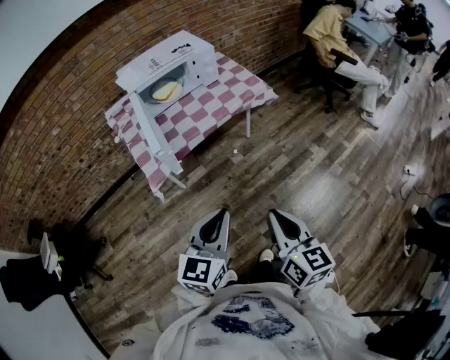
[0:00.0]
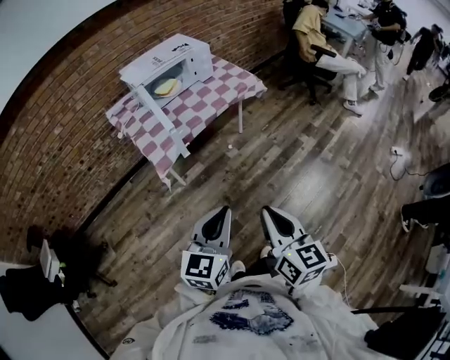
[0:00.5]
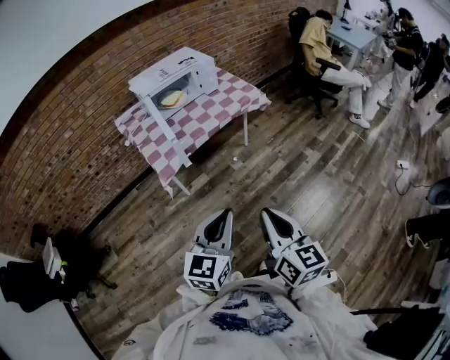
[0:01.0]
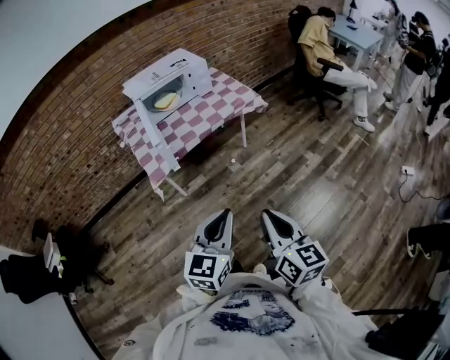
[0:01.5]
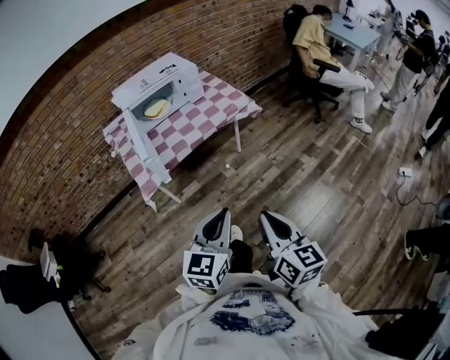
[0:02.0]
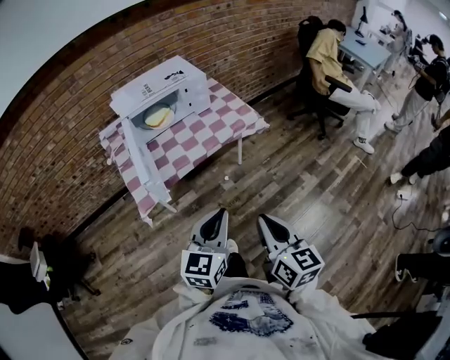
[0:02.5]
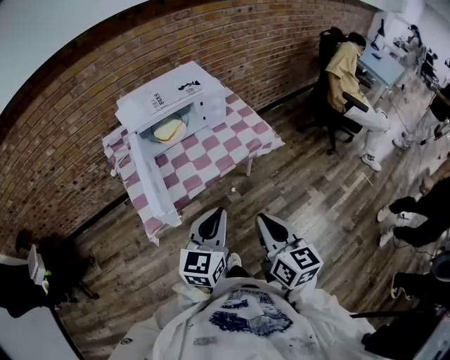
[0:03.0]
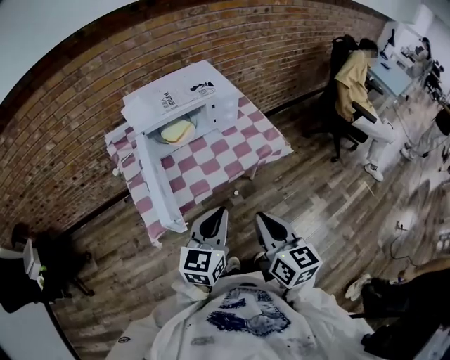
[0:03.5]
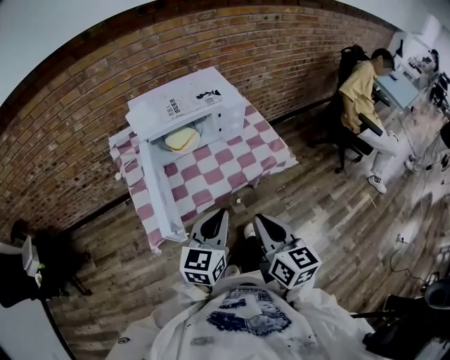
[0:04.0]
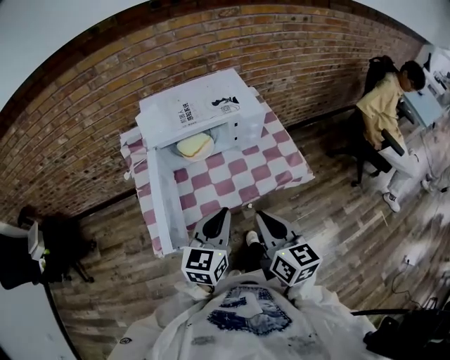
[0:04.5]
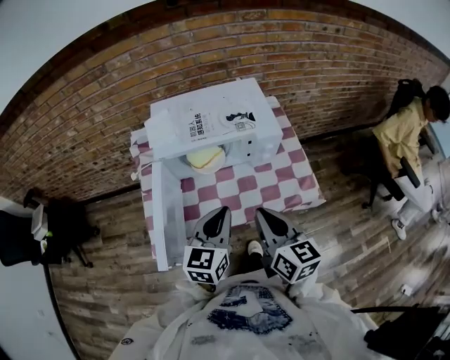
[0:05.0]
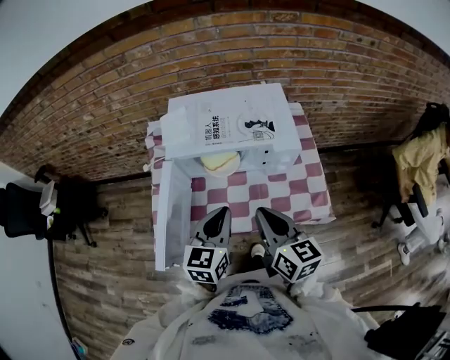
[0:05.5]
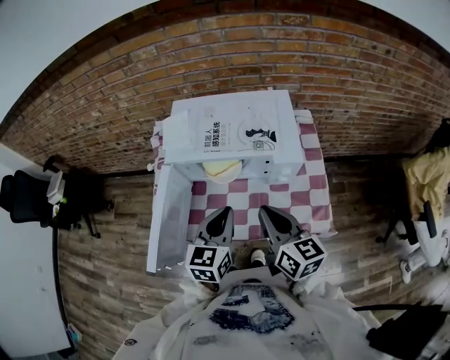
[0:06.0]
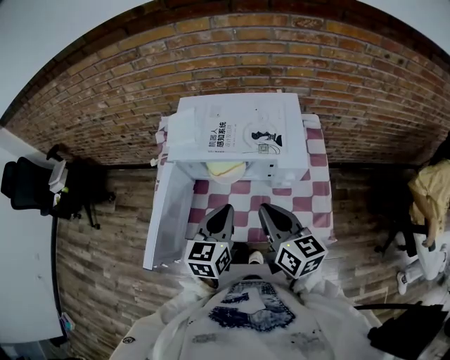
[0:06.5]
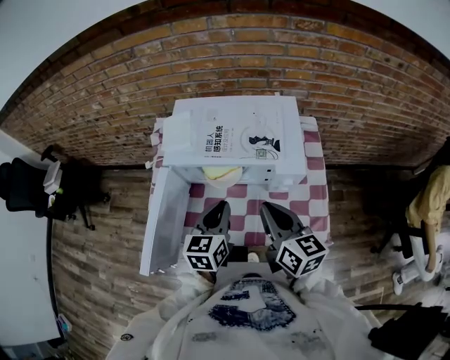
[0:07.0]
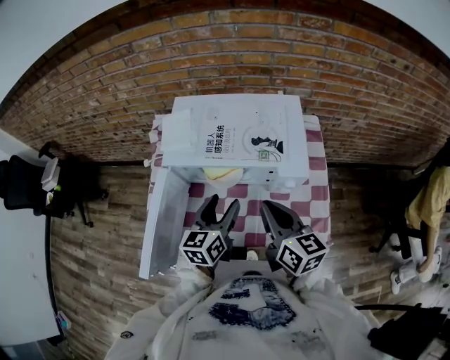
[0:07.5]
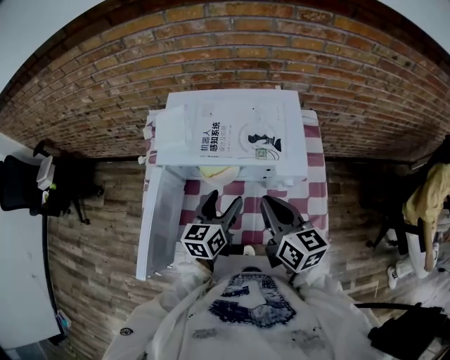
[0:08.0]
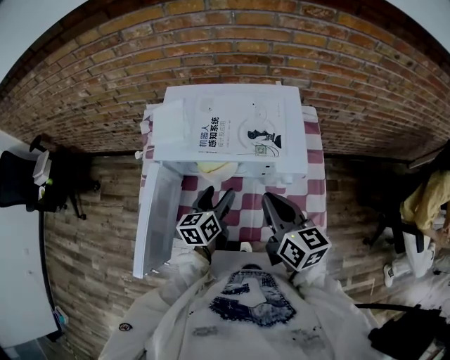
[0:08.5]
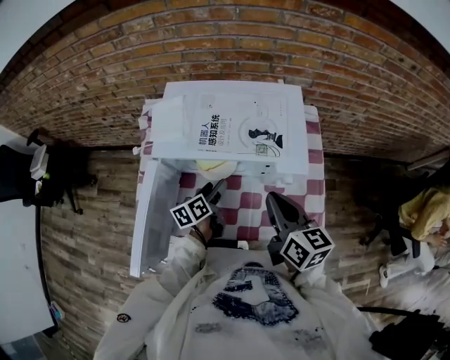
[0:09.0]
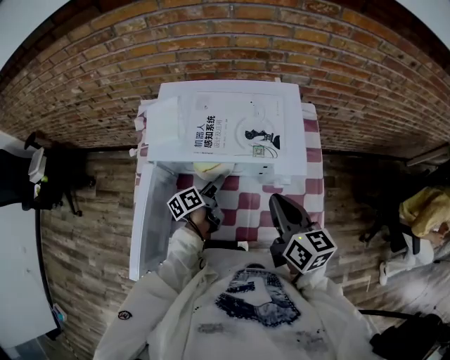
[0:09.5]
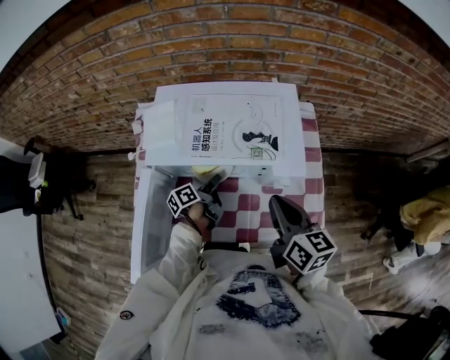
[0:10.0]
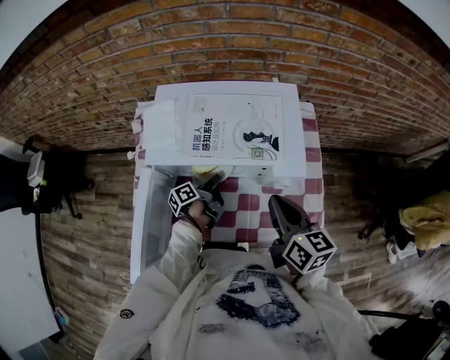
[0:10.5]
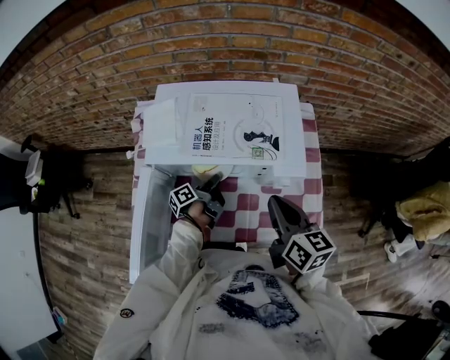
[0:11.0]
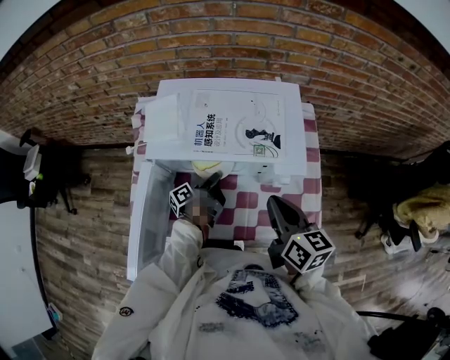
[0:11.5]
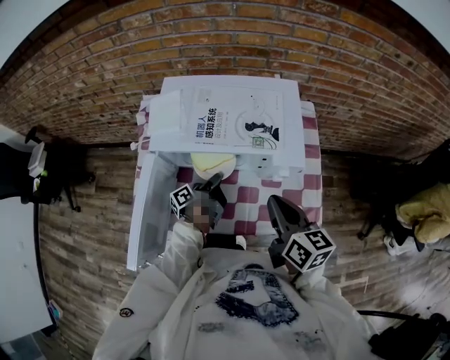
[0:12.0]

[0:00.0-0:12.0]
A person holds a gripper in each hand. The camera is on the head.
0:00.0 to 0:02.0: The two grippers go roughly 5 cm to the right. The right gripper goes backward and returns, about 15 cm each way.
0:02.0 to 0:04.0: The grippers both shift forward by about 35 cm.
0:04.0 to 0:06.0: The right gripper changes place by some 30 cm, and swivels roughly 30 degrees. The left gripper changes place by roughly 25 cm, and turns by roughly 30 degrees.
0:06.0 to 0:08.0: The left gripper shifts roughly 10 cm forward and downward, and opens up, while the right gripper moves forward, about 5 cm.
0:08.0 to 0:10.0: The left gripper is displaced downward and forward by some 15 cm, twists some 50 degrees counterclockwise, seen from behind, and closes up.
0:10.0 to 0:12.0: The left gripper closes.

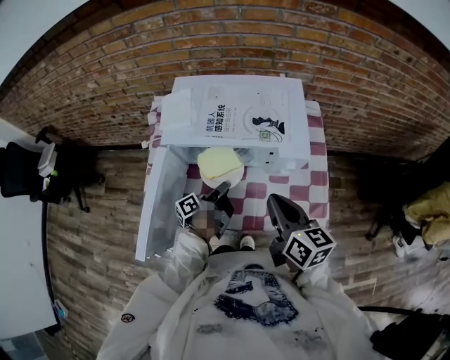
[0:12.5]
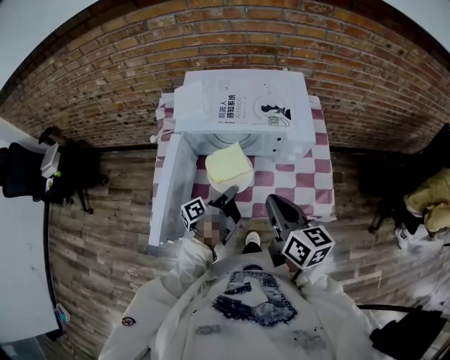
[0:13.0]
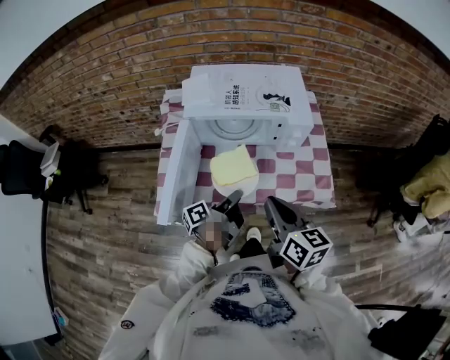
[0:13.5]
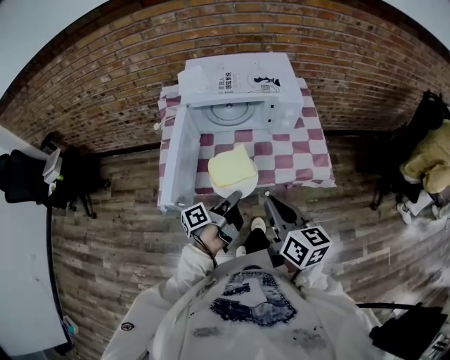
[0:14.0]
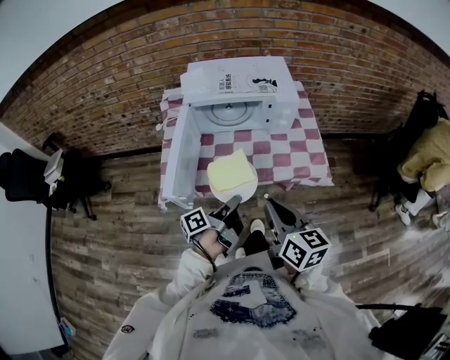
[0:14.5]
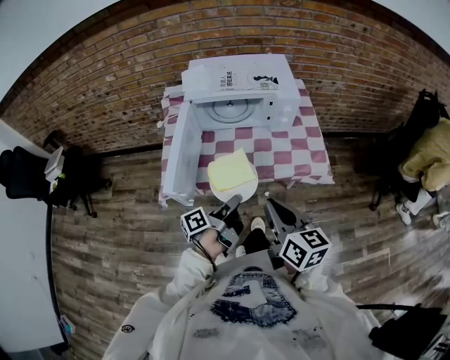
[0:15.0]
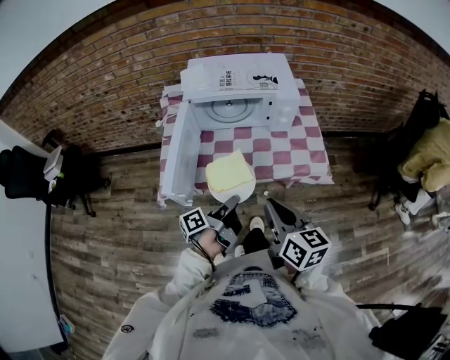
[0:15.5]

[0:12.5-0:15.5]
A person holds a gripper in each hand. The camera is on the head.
0:12.5 to 0:14.0: The two grippers go roughly 25 cm backward.
0:14.0 to 0:15.5: The grippers make only small movements.

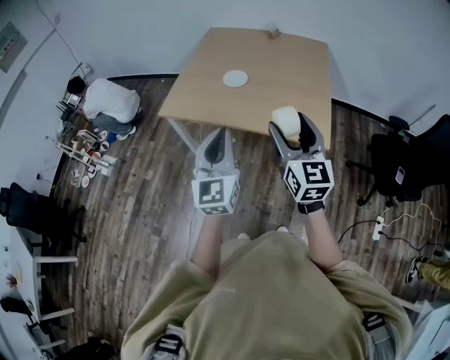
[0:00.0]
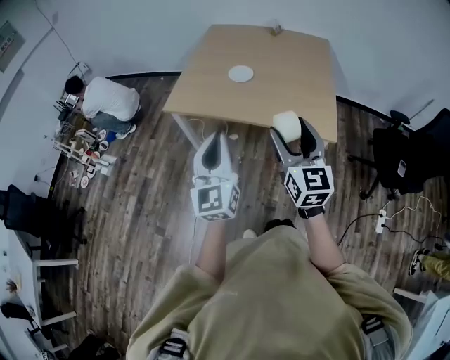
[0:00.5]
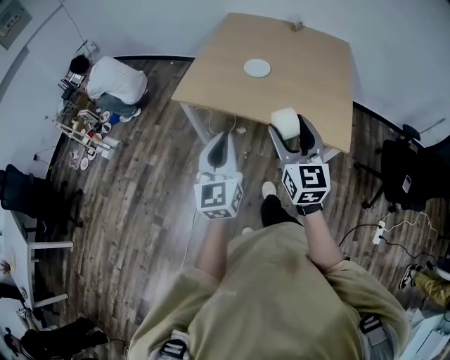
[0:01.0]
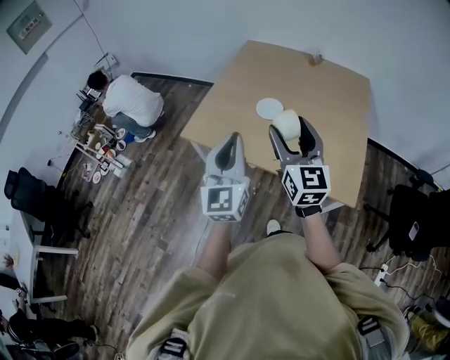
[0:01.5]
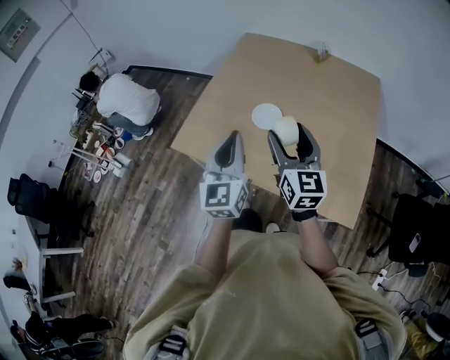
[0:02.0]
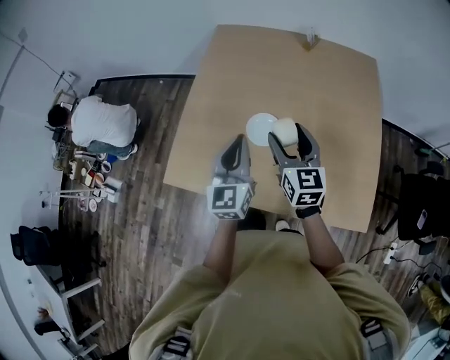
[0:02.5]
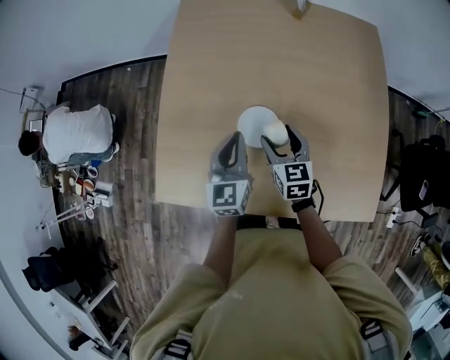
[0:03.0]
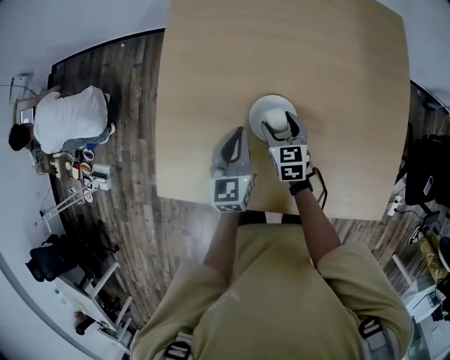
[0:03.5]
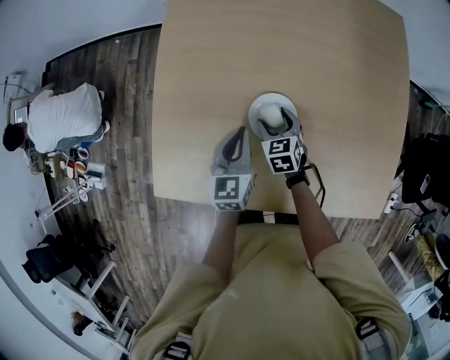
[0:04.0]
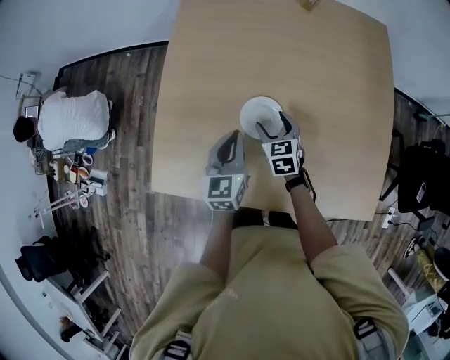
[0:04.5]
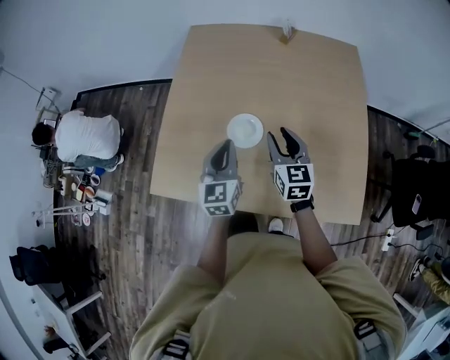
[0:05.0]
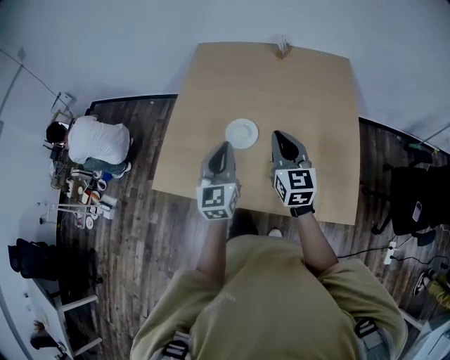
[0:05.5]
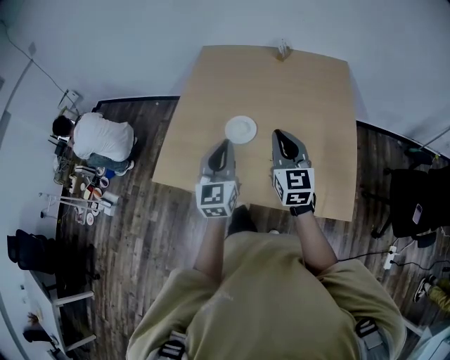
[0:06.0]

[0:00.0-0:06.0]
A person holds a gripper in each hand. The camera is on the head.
0:00.0 to 0:02.0: Both grippers move forward, some 35 cm.
0:02.0 to 0:04.0: The right gripper moves downward and forward, some 50 cm, and points its fingers about 50 degrees further downward; the left gripper goes some 40 cm forward and downward, and rotates approximately 40 degrees.
0:04.0 to 0:06.0: The grippers both shift upward, backward and to the right by some 40 cm. The left gripper changes its angle by about 30 degrees, while the right gripper tilts its fingers roughly 40 degrees upward, and closes its fingers.

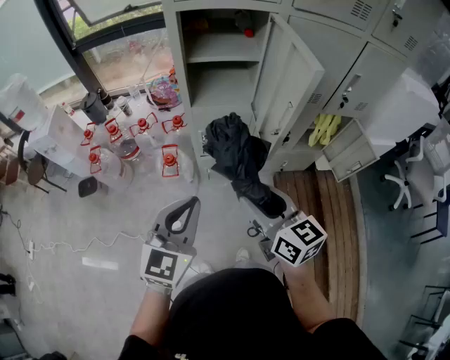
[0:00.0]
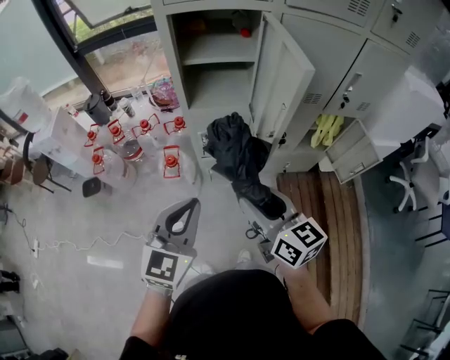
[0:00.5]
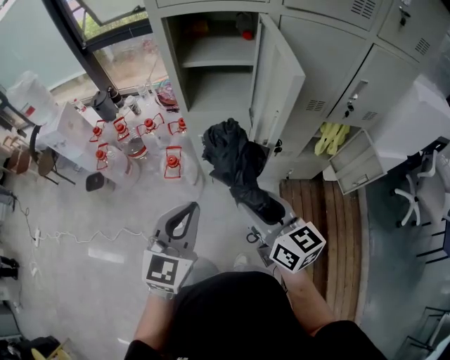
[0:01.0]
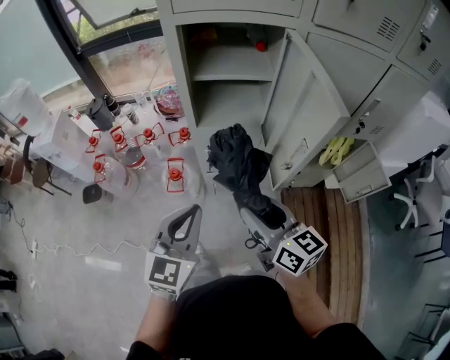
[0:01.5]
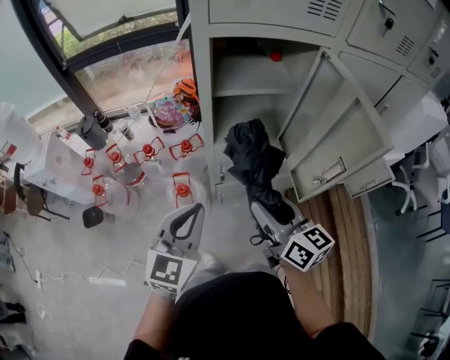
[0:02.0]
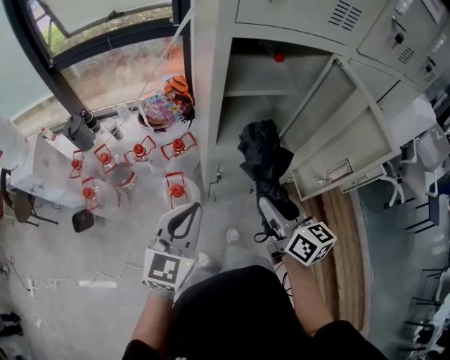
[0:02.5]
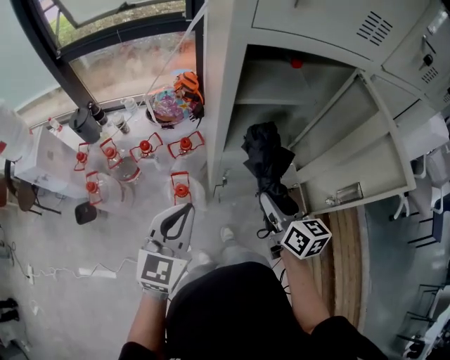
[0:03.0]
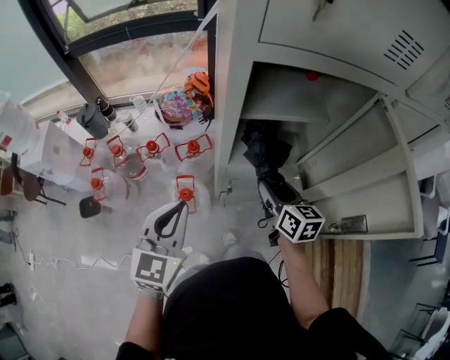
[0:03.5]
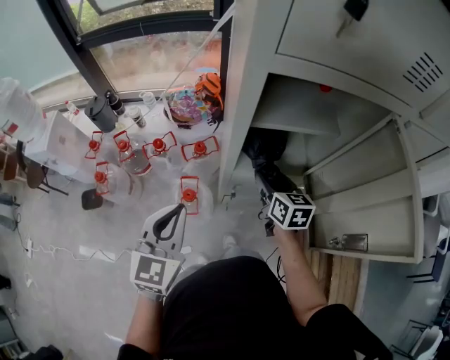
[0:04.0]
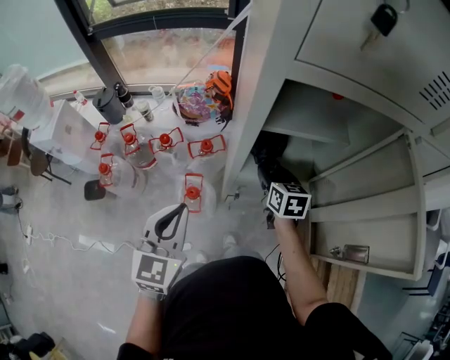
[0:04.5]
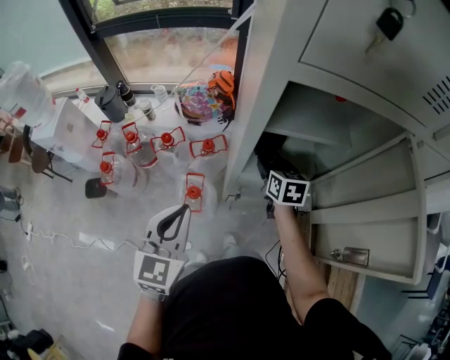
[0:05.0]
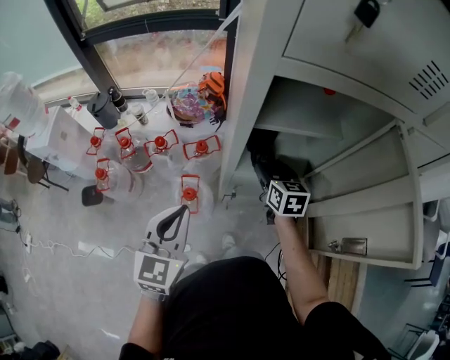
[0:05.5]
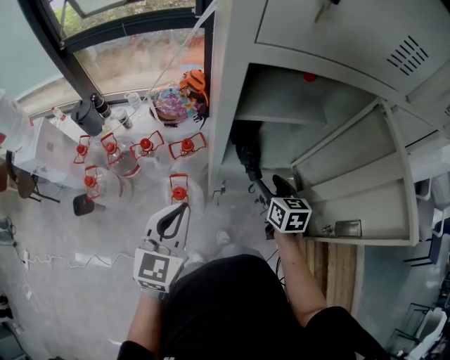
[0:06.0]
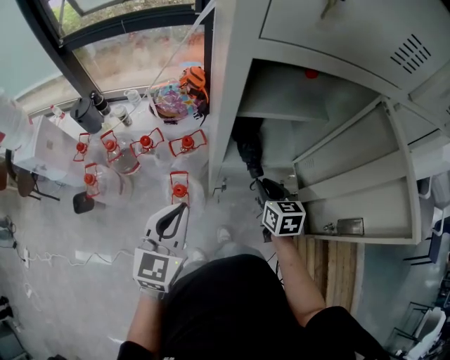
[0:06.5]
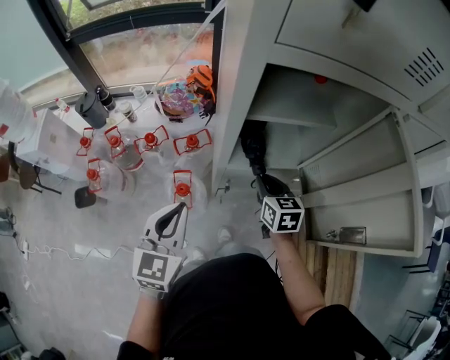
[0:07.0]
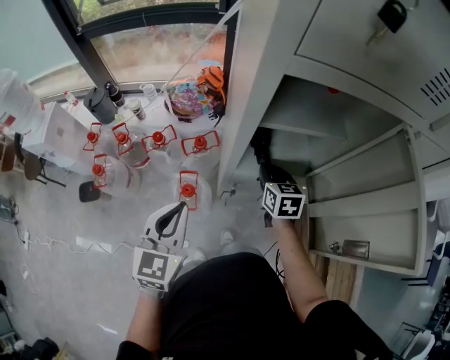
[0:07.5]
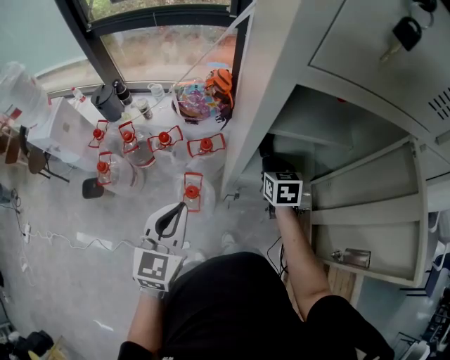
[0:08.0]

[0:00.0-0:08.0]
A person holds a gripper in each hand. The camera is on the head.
0:00.0 to 0:02.0: The right gripper travels forward by some 15 cm. Meanwhile the left gripper moves forward and to the left, approximately 20 cm.
0:02.0 to 0:04.0: The right gripper moves forward and downward, approximately 25 cm, and swivels some 20 degrees, while the left gripper moves forward and to the left, roughly 15 cm.
0:04.0 to 0:06.0: The right gripper reaches about 5 cm forward, then returns.
0:06.0 to 0:08.0: The right gripper shifts roughly 10 cm forward and to the left, and closes.
